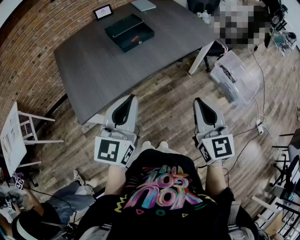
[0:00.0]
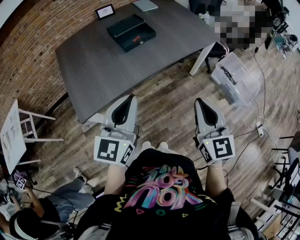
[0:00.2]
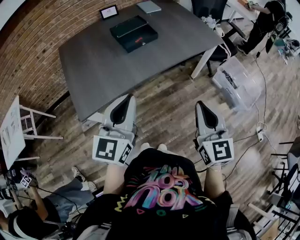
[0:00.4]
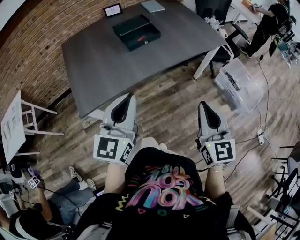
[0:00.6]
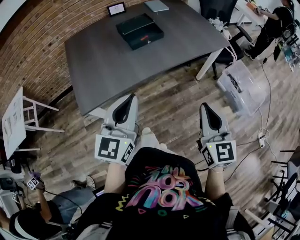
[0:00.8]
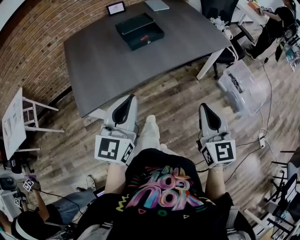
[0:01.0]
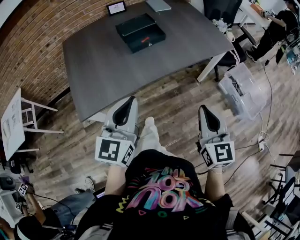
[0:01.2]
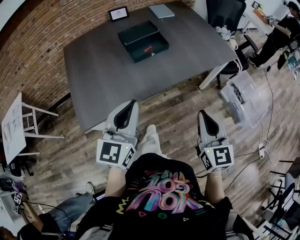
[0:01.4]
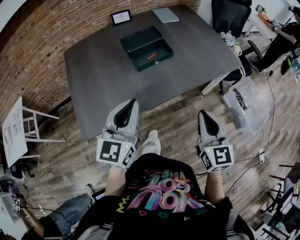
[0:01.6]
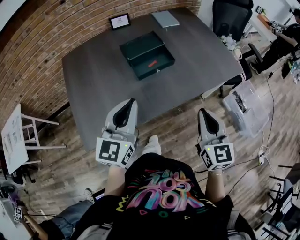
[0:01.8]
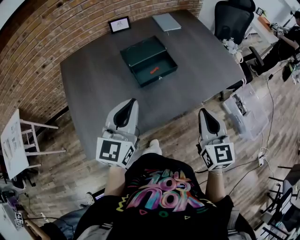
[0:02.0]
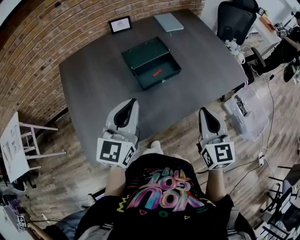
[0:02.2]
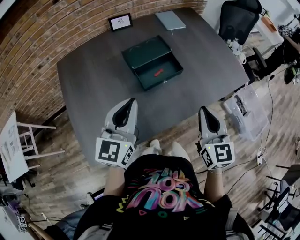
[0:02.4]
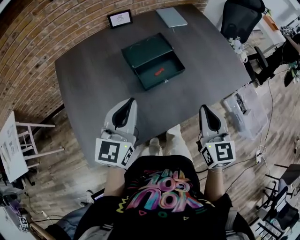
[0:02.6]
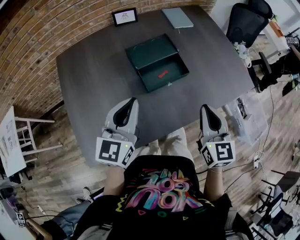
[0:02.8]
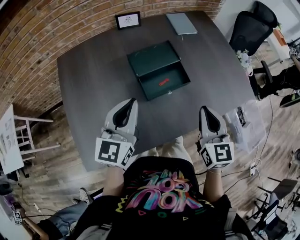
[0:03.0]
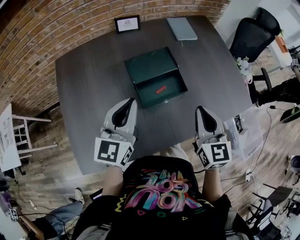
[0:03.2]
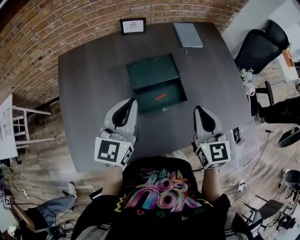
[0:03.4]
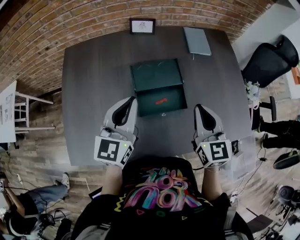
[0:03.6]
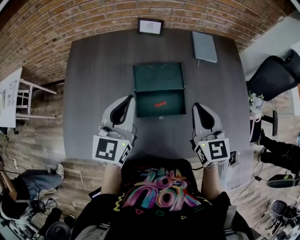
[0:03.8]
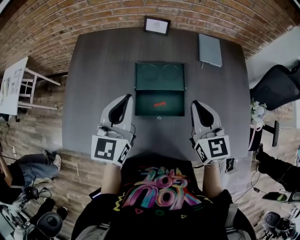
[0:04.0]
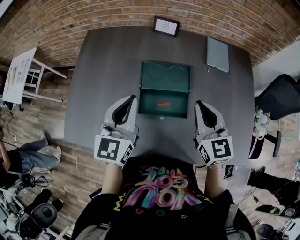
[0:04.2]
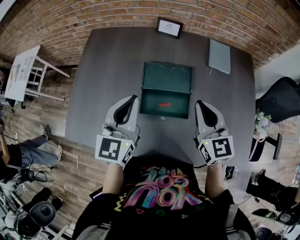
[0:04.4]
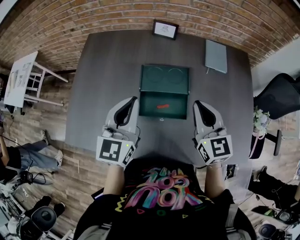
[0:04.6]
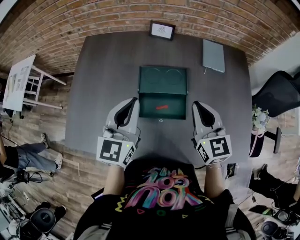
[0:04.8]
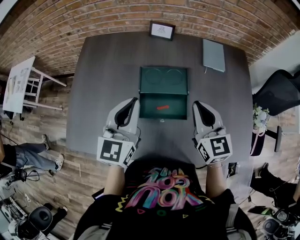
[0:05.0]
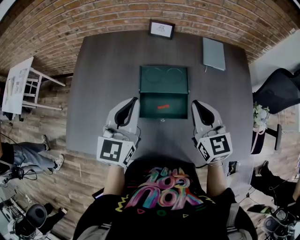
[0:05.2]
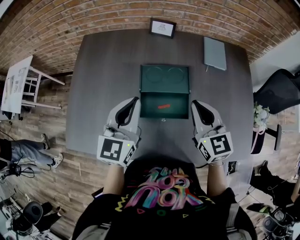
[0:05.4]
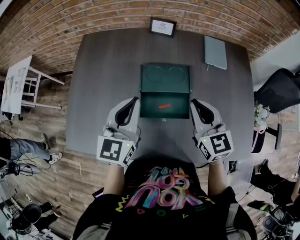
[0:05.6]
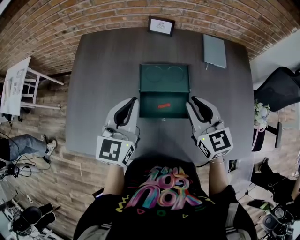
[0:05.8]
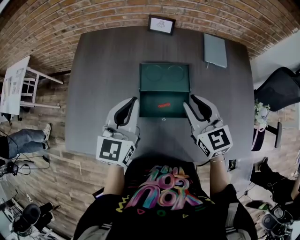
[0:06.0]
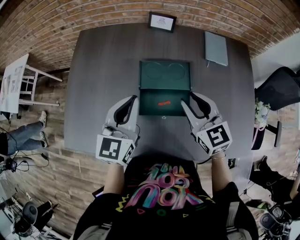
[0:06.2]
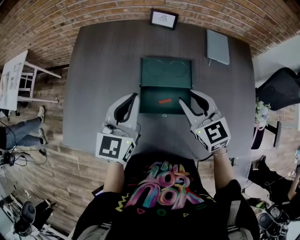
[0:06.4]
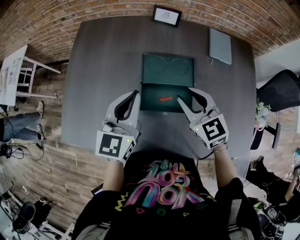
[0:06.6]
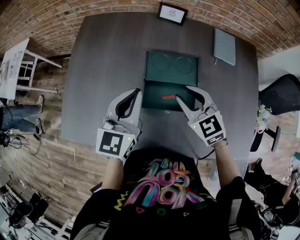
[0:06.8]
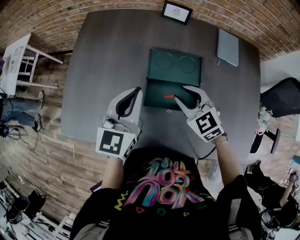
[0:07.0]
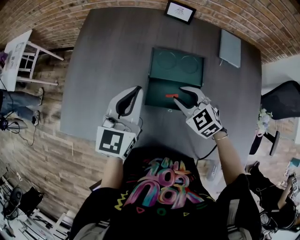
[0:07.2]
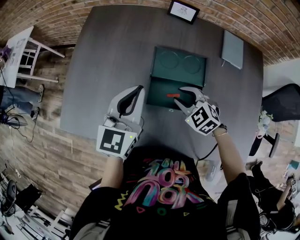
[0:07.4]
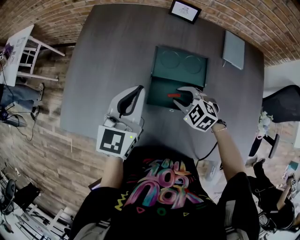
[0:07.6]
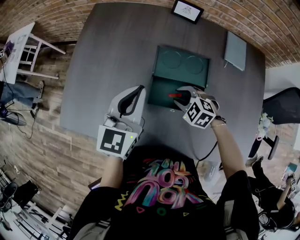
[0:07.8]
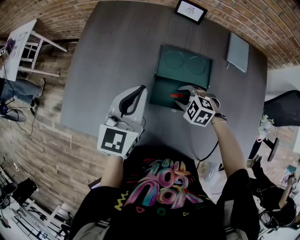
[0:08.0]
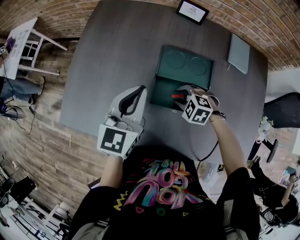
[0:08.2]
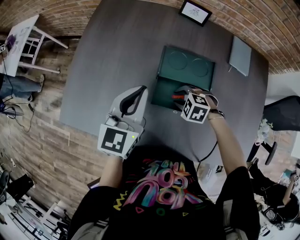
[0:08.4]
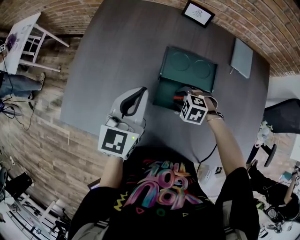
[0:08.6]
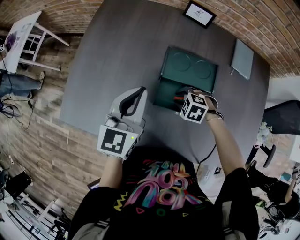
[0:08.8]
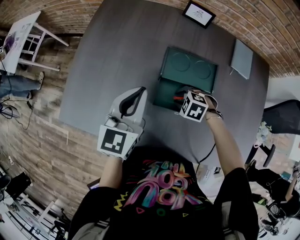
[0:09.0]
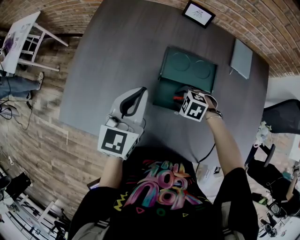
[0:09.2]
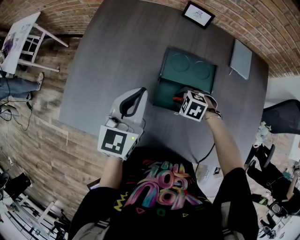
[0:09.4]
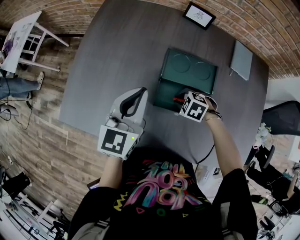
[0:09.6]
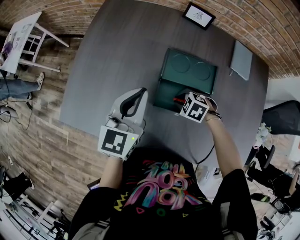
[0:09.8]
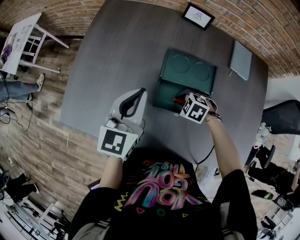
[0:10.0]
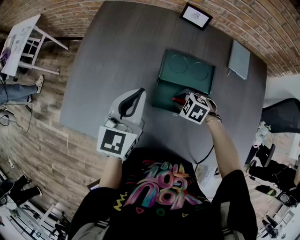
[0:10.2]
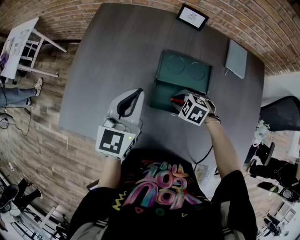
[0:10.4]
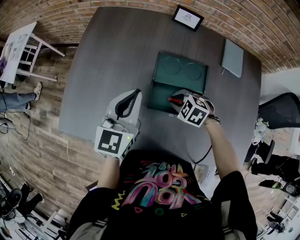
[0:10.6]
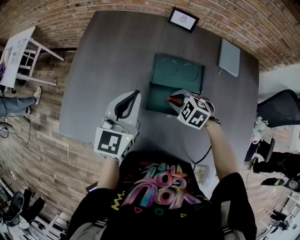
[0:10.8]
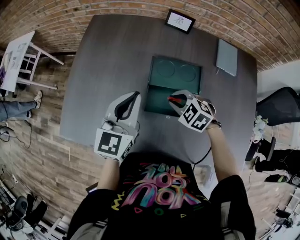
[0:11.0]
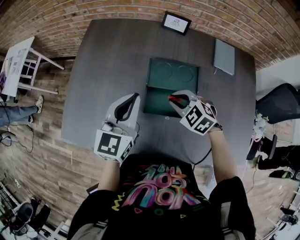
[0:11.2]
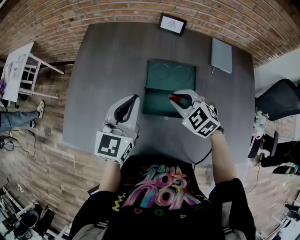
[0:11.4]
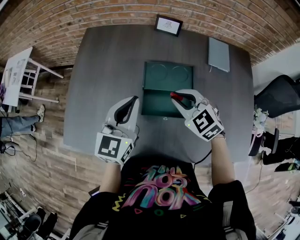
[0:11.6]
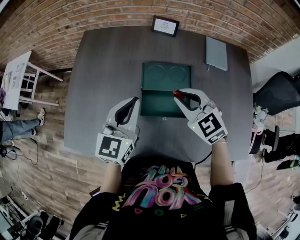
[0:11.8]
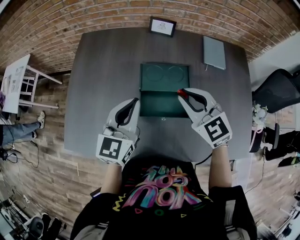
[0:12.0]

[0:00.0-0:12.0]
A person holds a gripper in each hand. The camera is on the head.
0:00.0 to 0:01.6: The grippers both shift forward by roughly 15 cm.
0:01.6 to 0:03.0: The grippers both shift forward by roughly 20 cm.
0:03.0 to 0:04.4: The right gripper ends up some 20 cm from where it was, and rotates roughly 40 degrees, while the left gripper moves some 10 cm, and changes its angle by some 30 degrees.
0:04.4 to 0:06.0: The right gripper opens up.
0:06.0 to 0:07.6: The right gripper travels downward and to the left by about 20 cm, and points its fingers approximately 30 degrees further downward.
0:07.6 to 0:09.0: The right gripper travels downward by about 5 cm, and swivels some 30 degrees.
0:09.0 to 0:10.4: The grippers stay close to where they were, moving slightly.
0:10.4 to 0:12.0: The left gripper shifts by about 5 cm. The right gripper travels upward by roughly 25 cm, and tips its fingers upward by about 40 degrees.

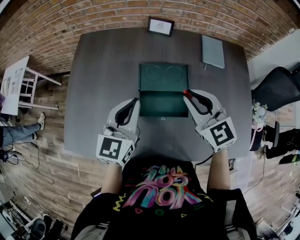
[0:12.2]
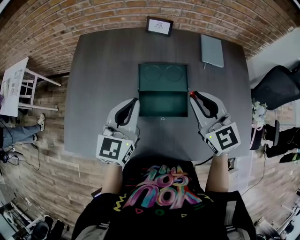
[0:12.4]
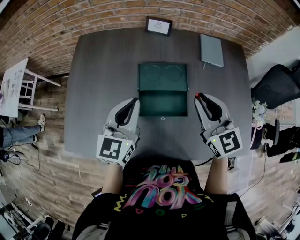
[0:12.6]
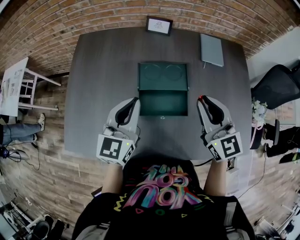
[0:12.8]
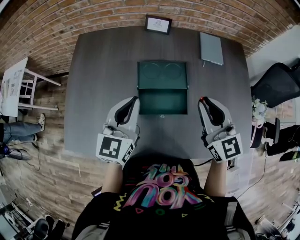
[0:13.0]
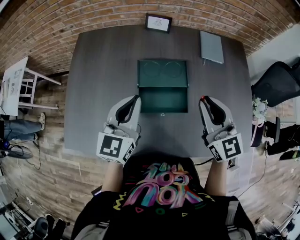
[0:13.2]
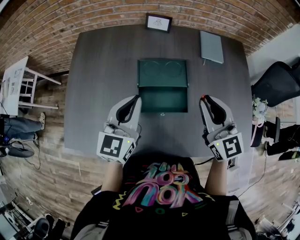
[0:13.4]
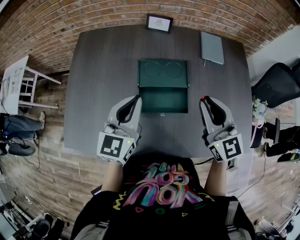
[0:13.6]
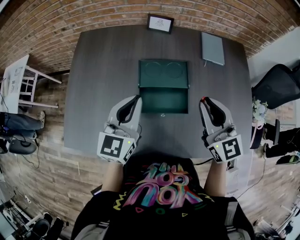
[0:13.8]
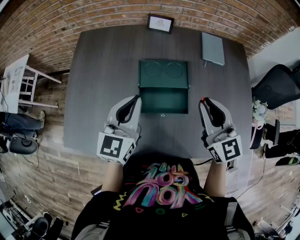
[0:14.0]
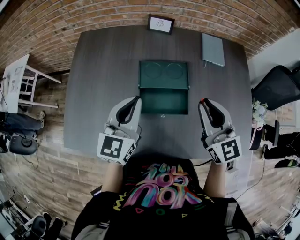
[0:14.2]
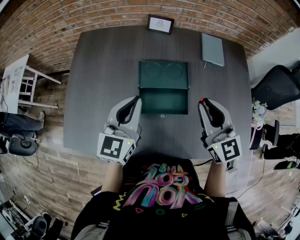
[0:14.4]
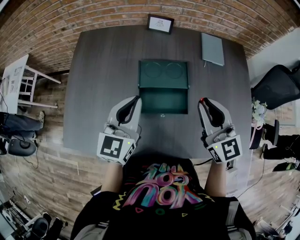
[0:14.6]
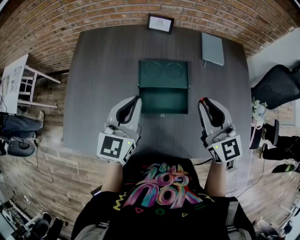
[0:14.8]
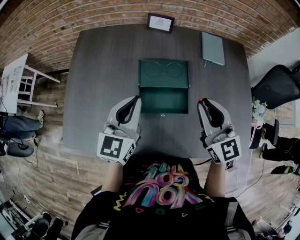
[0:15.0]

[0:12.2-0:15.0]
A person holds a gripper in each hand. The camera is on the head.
0:12.2 to 0:13.6: The right gripper shifts about 5 cm to the right.
0:13.6 to 0:15.0: Neither gripper changes place.

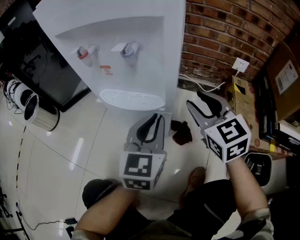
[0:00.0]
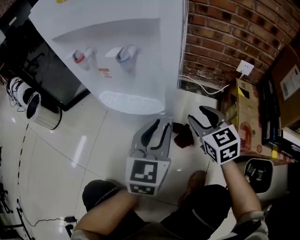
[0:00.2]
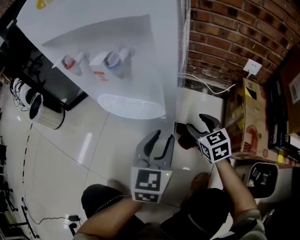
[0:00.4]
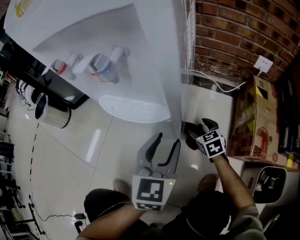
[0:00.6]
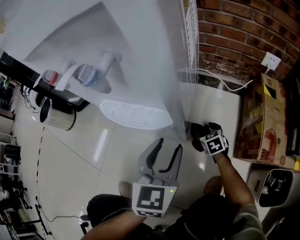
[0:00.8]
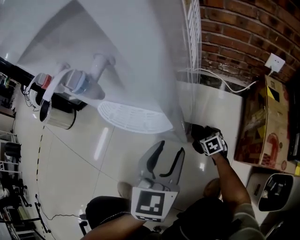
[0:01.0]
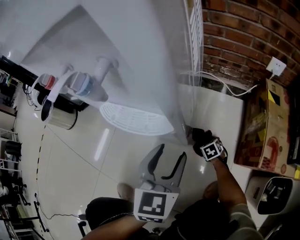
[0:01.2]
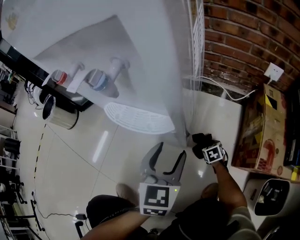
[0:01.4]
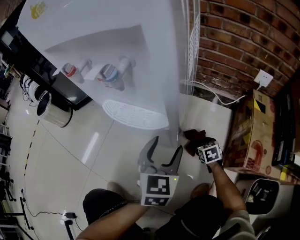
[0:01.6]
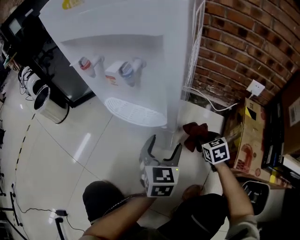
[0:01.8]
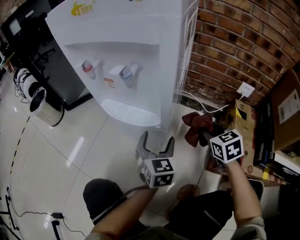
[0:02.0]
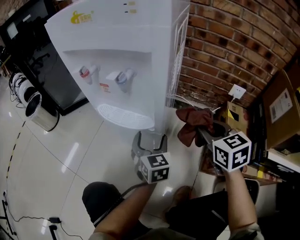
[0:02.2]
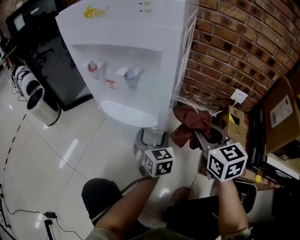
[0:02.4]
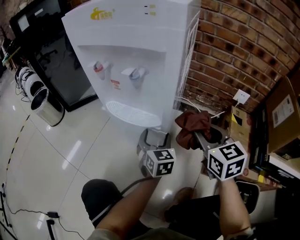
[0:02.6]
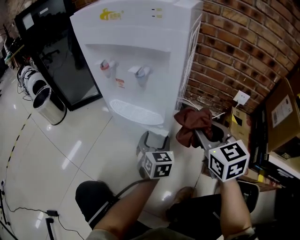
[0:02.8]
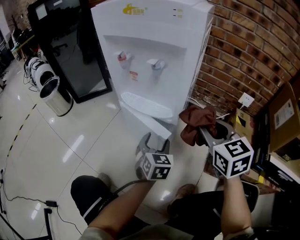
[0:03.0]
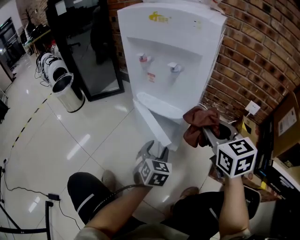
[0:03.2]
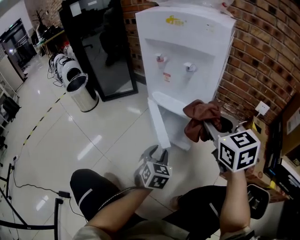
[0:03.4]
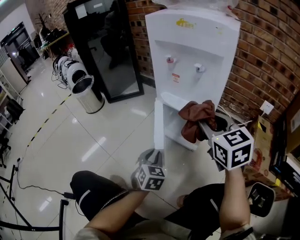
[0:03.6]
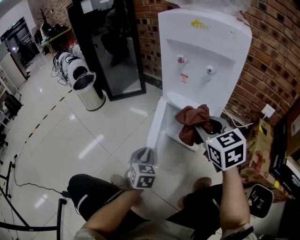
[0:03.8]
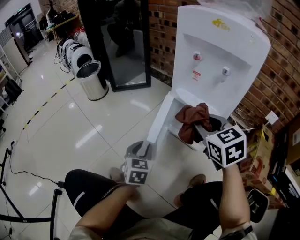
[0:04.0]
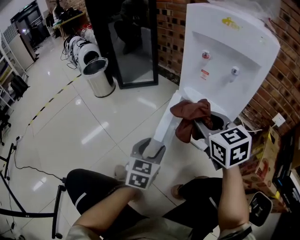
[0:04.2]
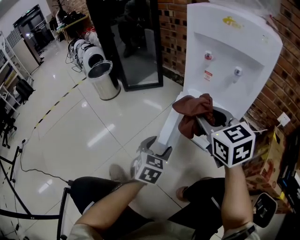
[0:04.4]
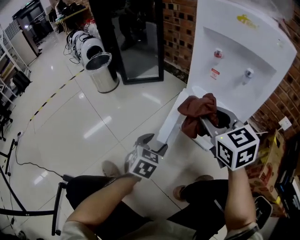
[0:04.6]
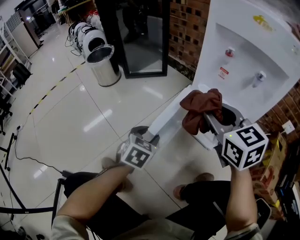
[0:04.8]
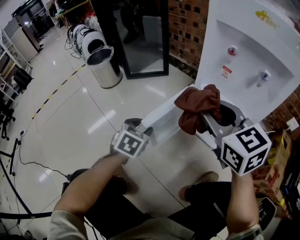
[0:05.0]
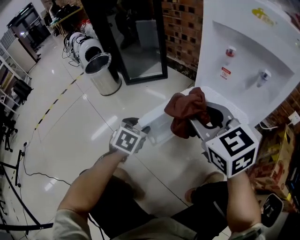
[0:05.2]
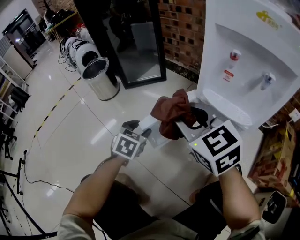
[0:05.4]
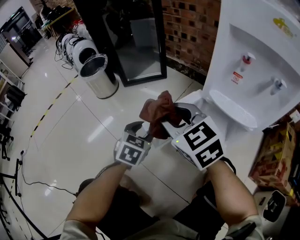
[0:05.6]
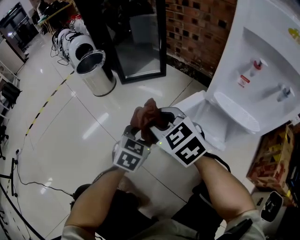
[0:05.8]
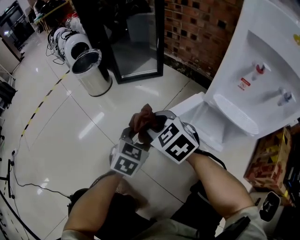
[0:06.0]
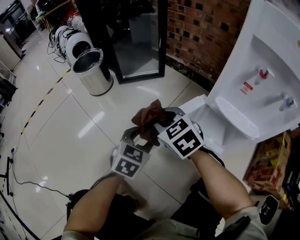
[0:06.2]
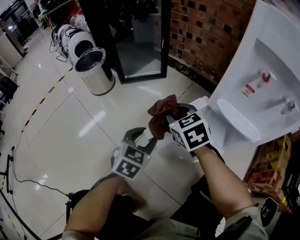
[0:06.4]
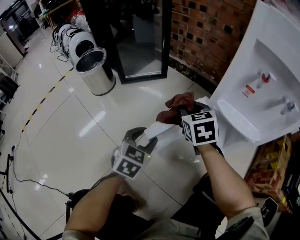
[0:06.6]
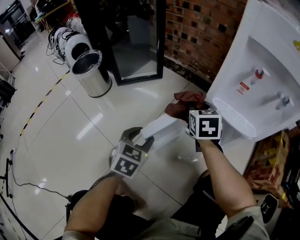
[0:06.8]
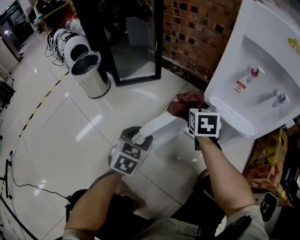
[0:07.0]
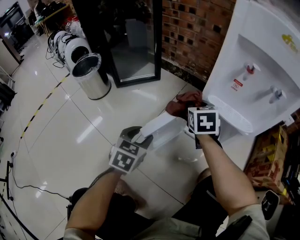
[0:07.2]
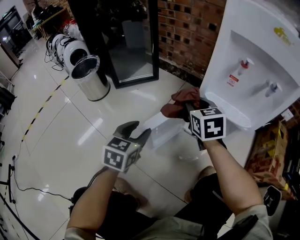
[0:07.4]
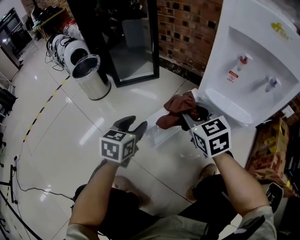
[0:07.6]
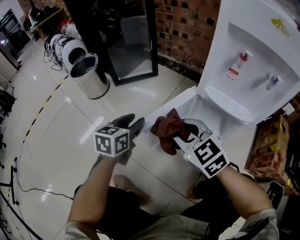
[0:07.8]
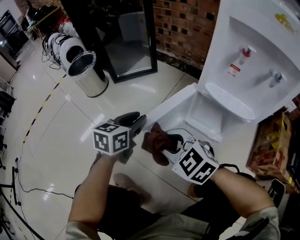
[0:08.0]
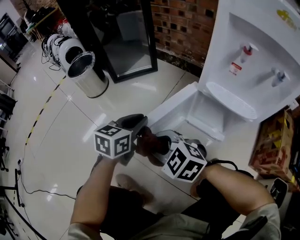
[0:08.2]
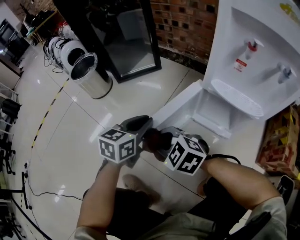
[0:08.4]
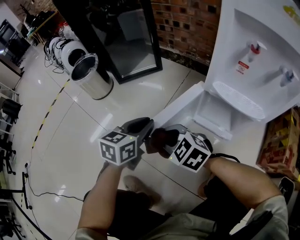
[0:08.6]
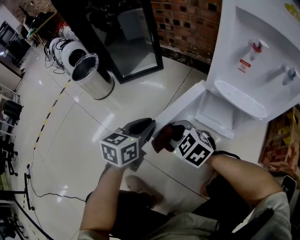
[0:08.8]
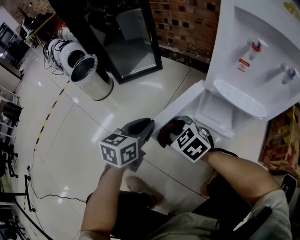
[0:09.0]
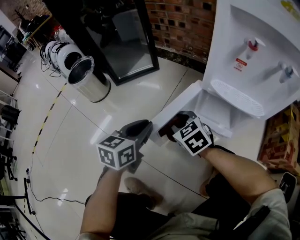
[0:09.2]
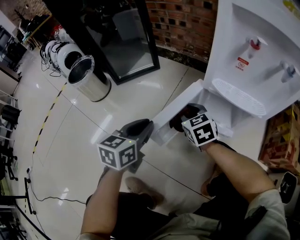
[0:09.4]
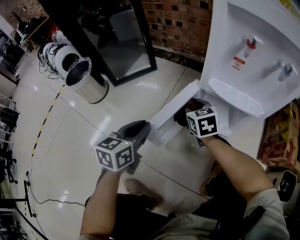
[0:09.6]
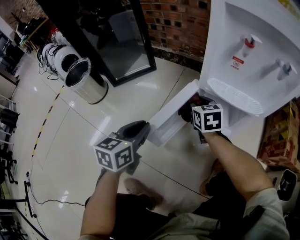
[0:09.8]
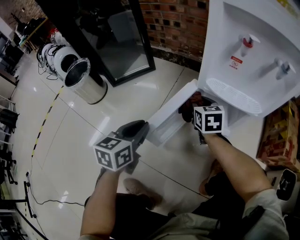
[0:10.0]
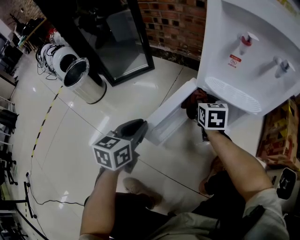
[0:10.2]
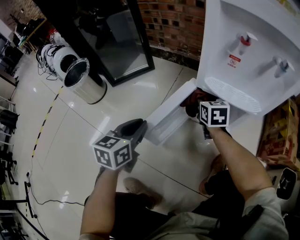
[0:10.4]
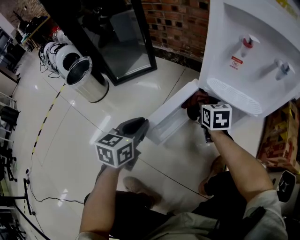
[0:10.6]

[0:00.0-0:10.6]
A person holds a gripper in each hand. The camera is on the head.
0:00.0 to 0:01.6: The left gripper travels downward by roughly 10 cm, and opens. The right gripper moves downward, approximately 40 cm, and points its fingers some 30 degrees further downward.
0:01.6 to 0:03.0: The left gripper changes place by some 5 cm; the right gripper heads upward, covering roughly 40 cm, and points its fingers roughly 30 degrees further upward.
0:03.0 to 0:04.6: The two grippers go about 25 cm to the left. The right gripper changes its angle by approximately 20 degrees. Meanwhile the left gripper closes, then opens again.
0:04.6 to 0:06.0: The right gripper moves to the left, downward and forward, some 30 cm, and swivels roughly 30 degrees. The left gripper moves forward and to the left, approximately 15 cm.
0:06.0 to 0:07.6: The right gripper moves about 15 cm, and changes its angle by approximately 30 degrees.
0:07.6 to 0:09.0: The left gripper closes its fingers, while the right gripper moves downward and to the left, about 15 cm, and rotates approximately 20 degrees.
0:09.0 to 0:10.6: The right gripper goes approximately 20 cm to the right and forward, and rotates approximately 50 degrees.
